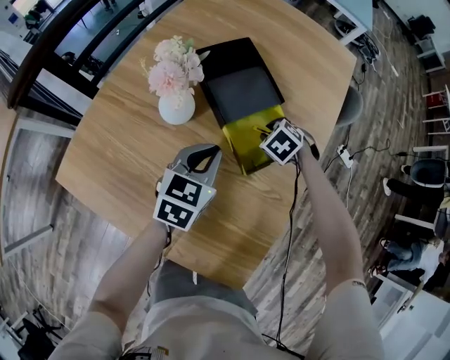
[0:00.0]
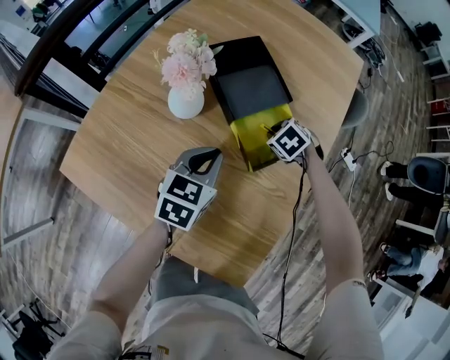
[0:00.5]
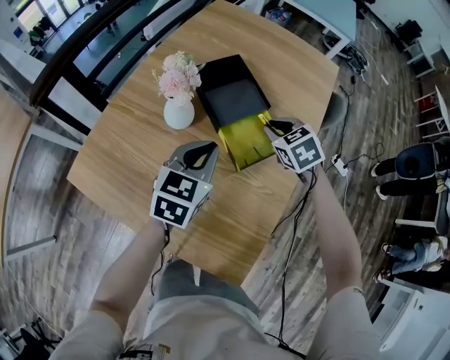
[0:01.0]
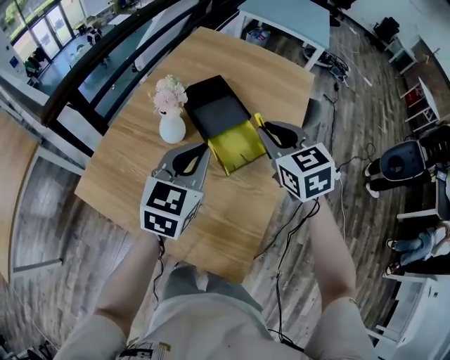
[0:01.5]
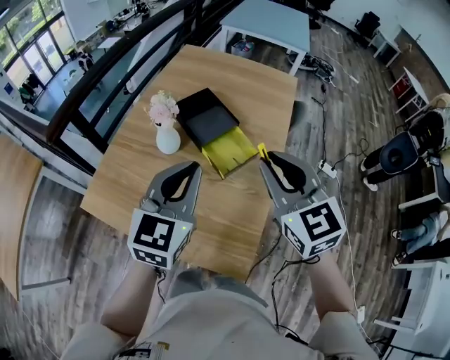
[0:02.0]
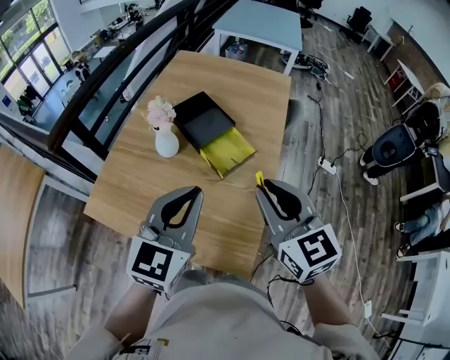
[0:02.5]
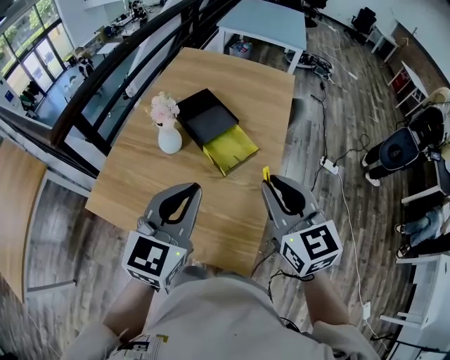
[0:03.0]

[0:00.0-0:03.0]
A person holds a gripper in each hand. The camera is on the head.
0:00.0 to 0:01.5: The left gripper moves upward, some 20 cm; the right gripper is displaced upward by some 35 cm, and tips its fingers upward by some 50 degrees.
0:01.5 to 0:03.0: The two grippers go roughly 20 cm backward and upward.

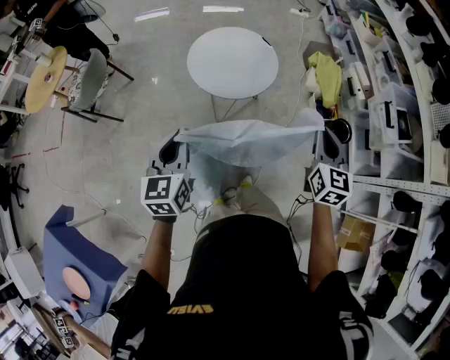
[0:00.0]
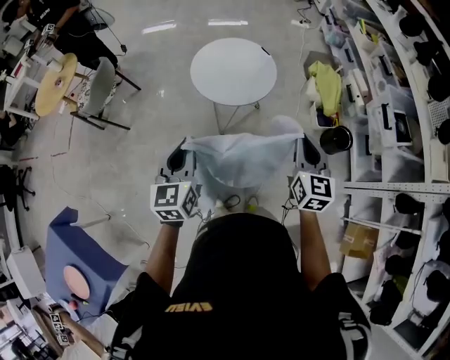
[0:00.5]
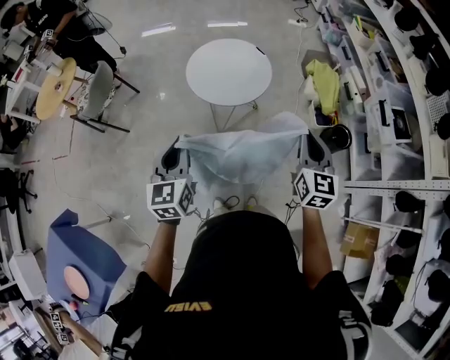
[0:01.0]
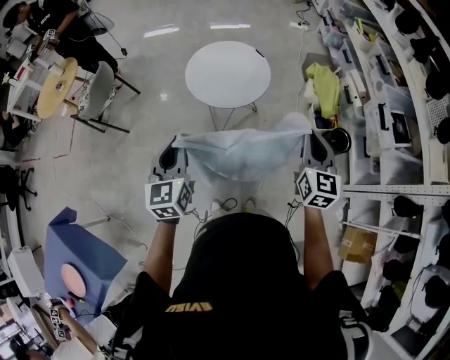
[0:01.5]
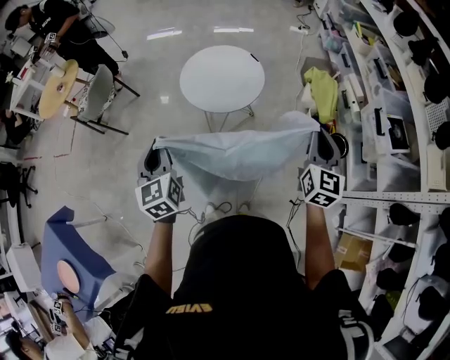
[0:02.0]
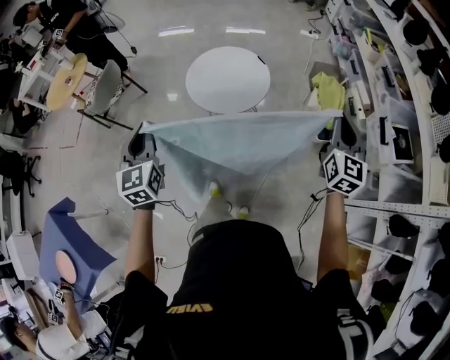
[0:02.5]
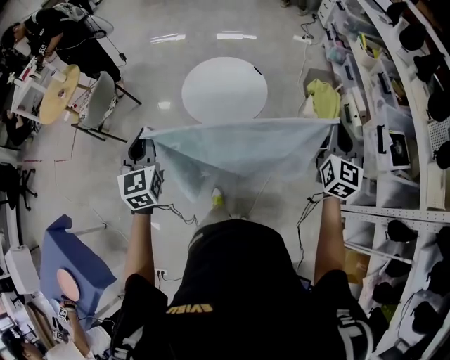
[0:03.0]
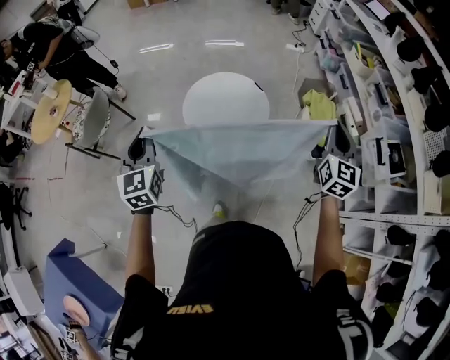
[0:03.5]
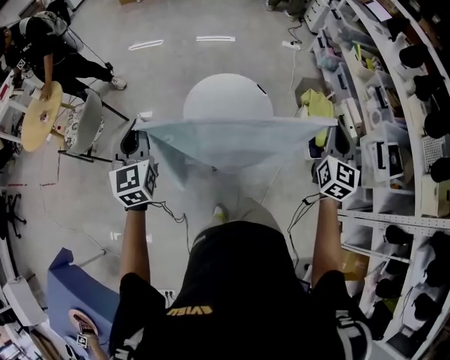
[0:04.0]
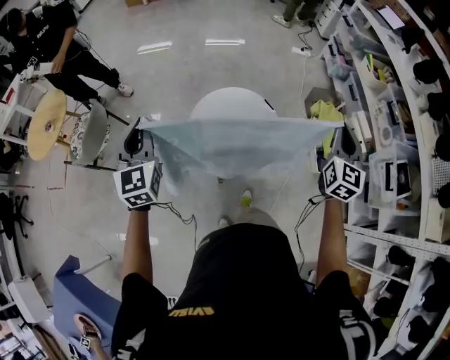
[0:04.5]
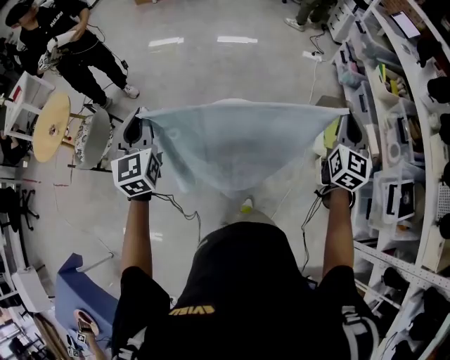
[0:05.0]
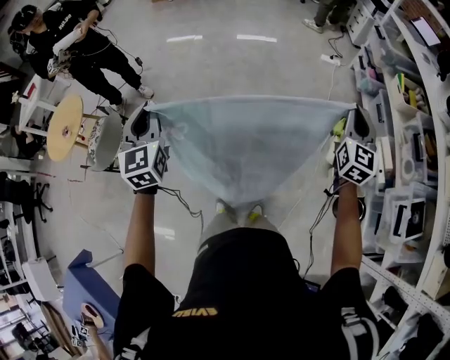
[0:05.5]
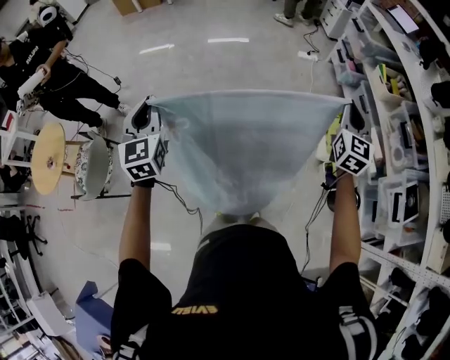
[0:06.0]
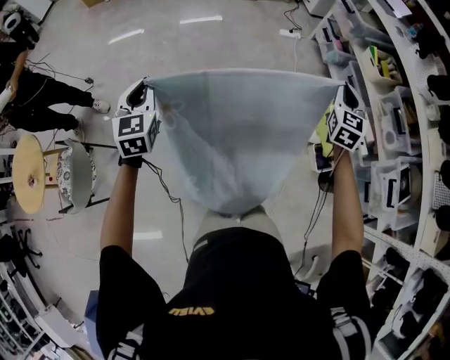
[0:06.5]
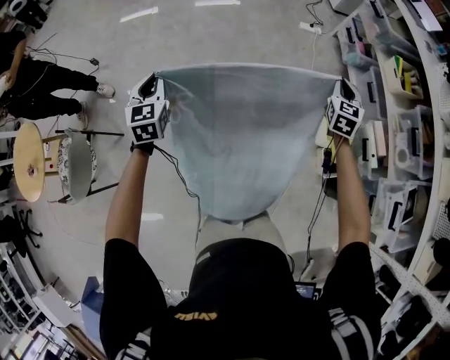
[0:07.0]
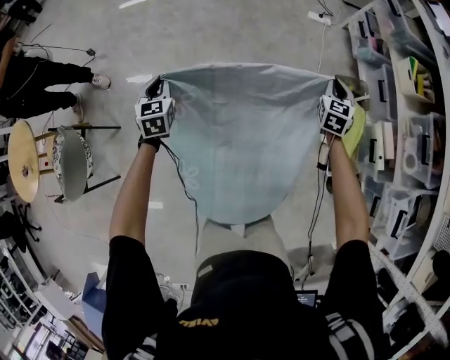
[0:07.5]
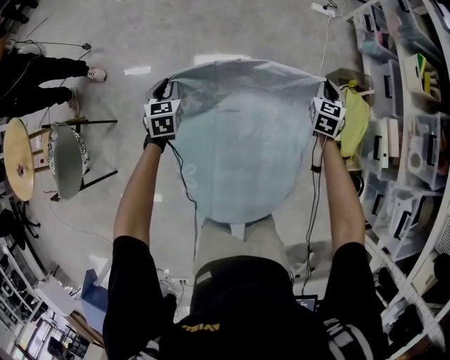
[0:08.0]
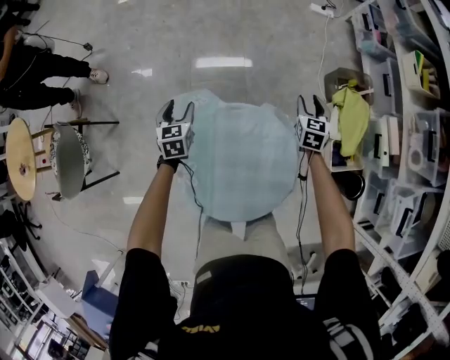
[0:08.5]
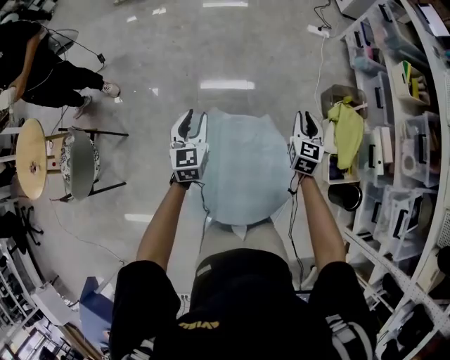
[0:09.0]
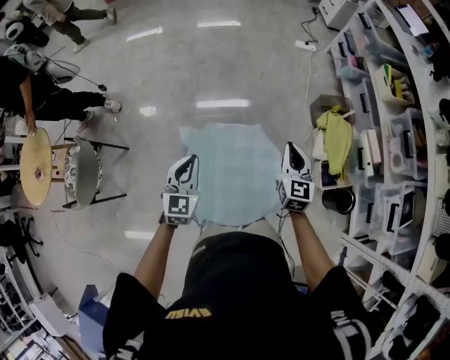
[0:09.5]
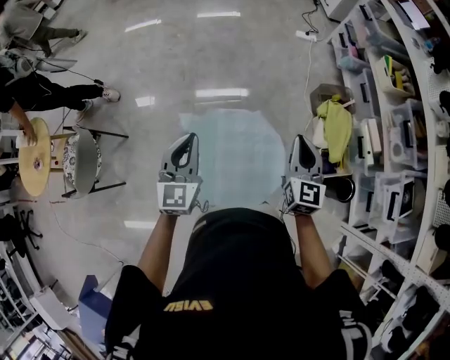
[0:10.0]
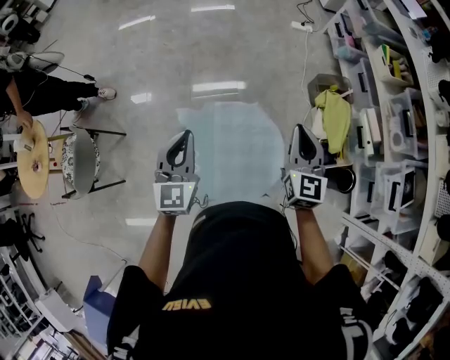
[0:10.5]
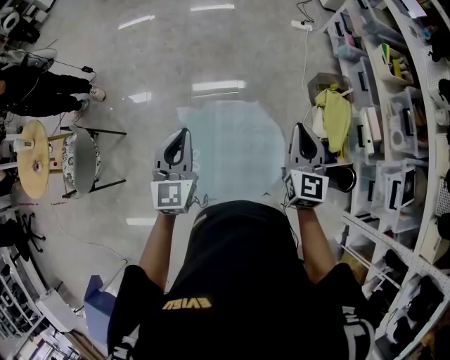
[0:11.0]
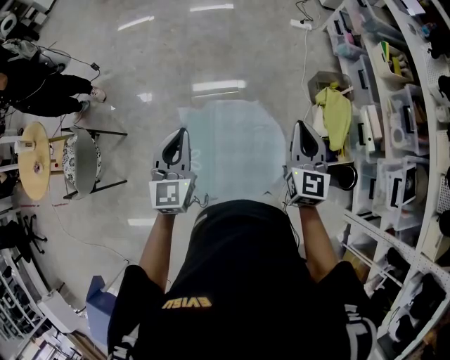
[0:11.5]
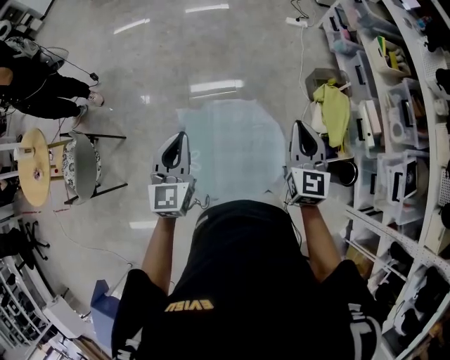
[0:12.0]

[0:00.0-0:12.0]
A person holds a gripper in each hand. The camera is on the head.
0:00.0 to 0:02.0: The right gripper goes roughly 10 cm to the right; the left gripper moves about 5 cm, and swivels some 20 degrees.
0:02.0 to 0:04.0: The right gripper heads forward, covering roughly 20 cm, while the left gripper moves forward and to the left, about 30 cm.
0:04.0 to 0:06.0: The pair of grippers is taken forward, some 40 cm.
0:06.0 to 0:08.0: Both grippers travel together downward and forward, approximately 40 cm. The right gripper rotates some 30 degrees. The left gripper turns by approximately 30 degrees.
0:08.0 to 0:10.0: The right gripper goes some 40 cm backward and upward, turns by about 30 degrees, and opens, then closes again, while the left gripper goes approximately 40 cm upward, backward and to the right, turns by about 30 degrees, and opens and closes again.
0:10.0 to 0:12.0: There are only small adjustments of the grippers.

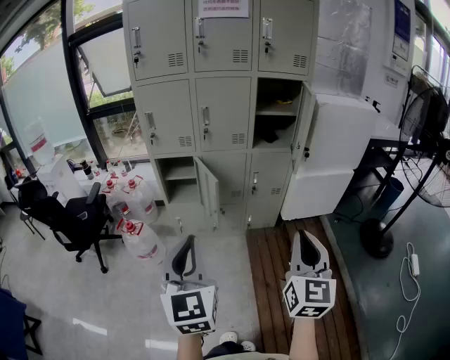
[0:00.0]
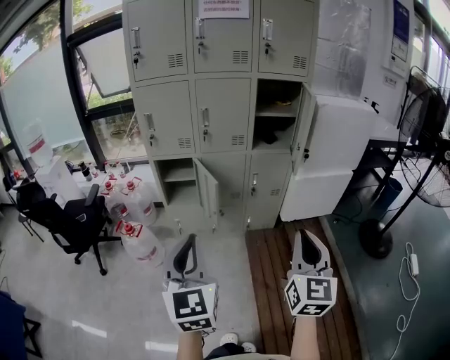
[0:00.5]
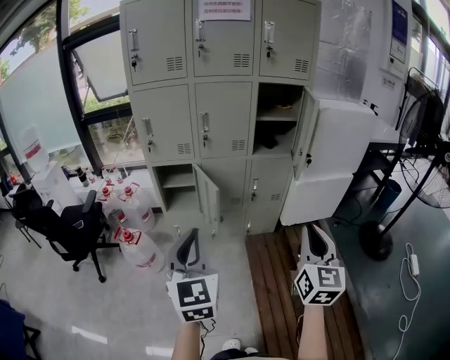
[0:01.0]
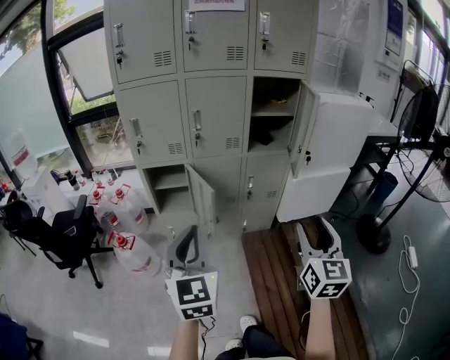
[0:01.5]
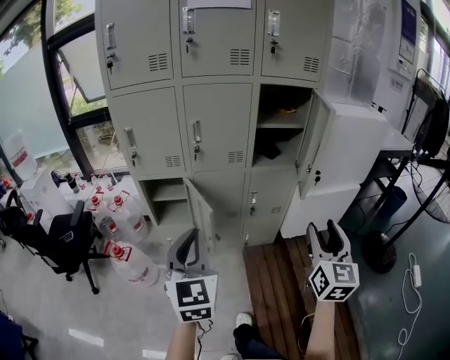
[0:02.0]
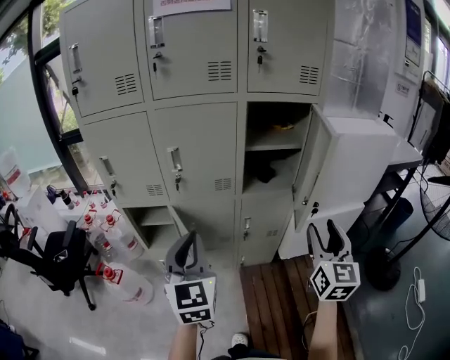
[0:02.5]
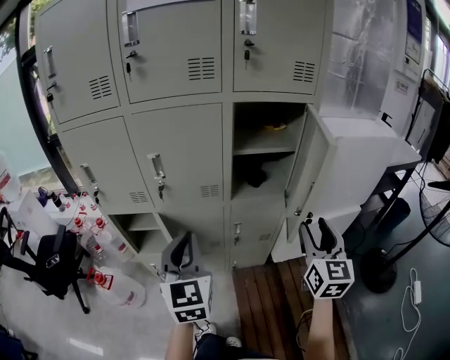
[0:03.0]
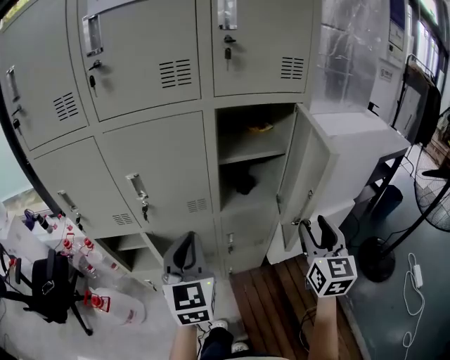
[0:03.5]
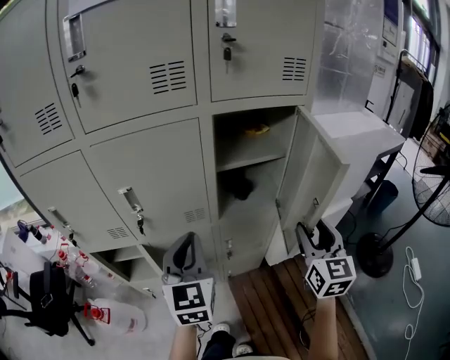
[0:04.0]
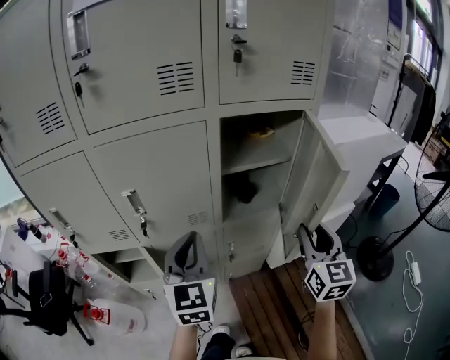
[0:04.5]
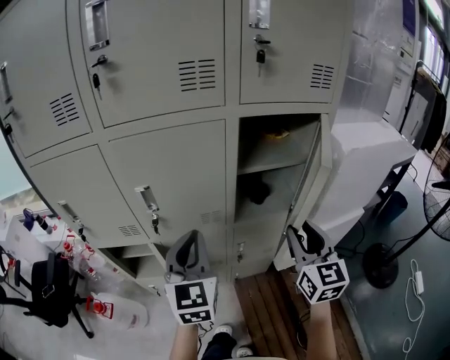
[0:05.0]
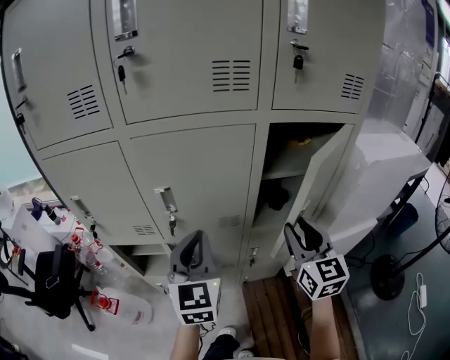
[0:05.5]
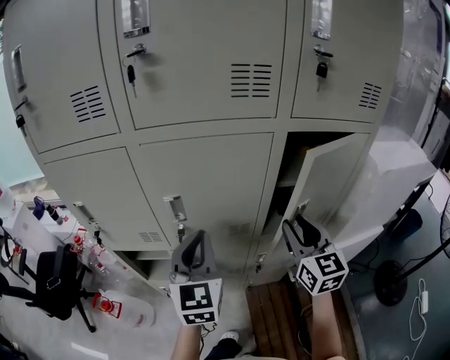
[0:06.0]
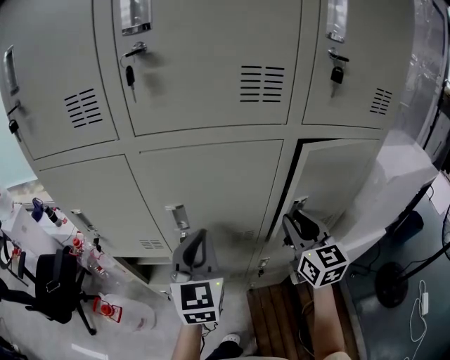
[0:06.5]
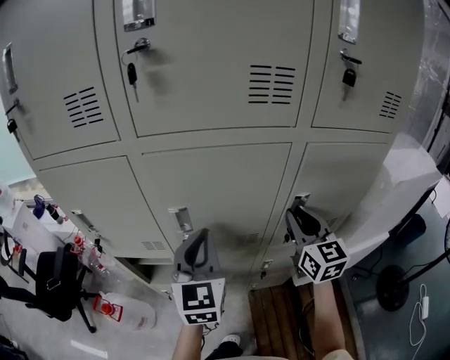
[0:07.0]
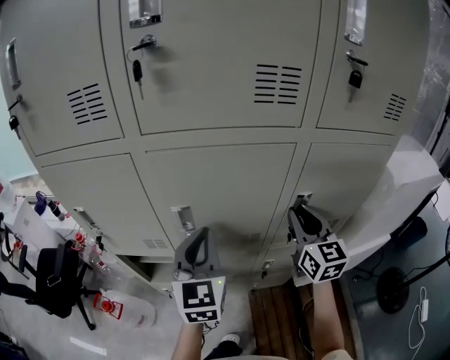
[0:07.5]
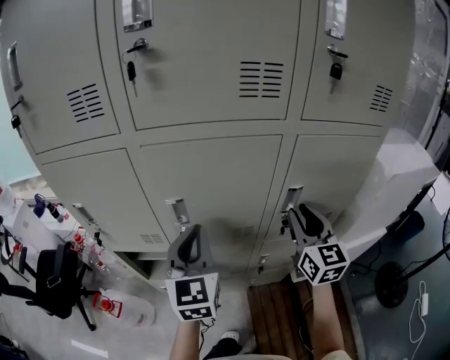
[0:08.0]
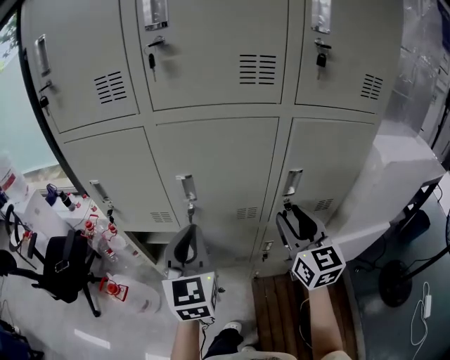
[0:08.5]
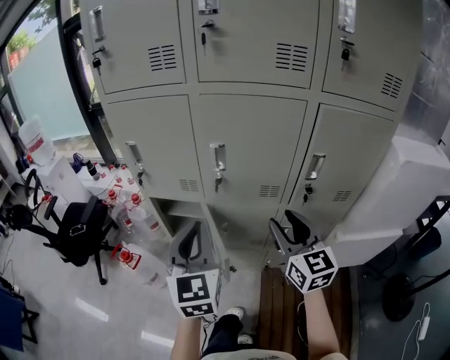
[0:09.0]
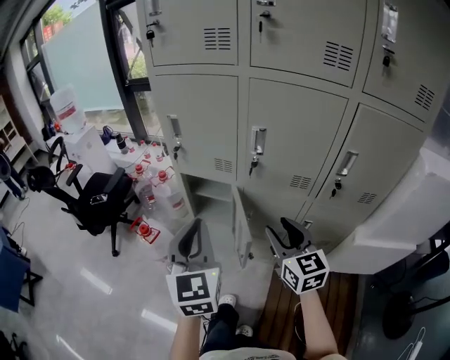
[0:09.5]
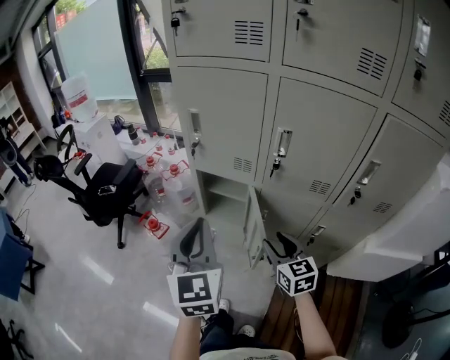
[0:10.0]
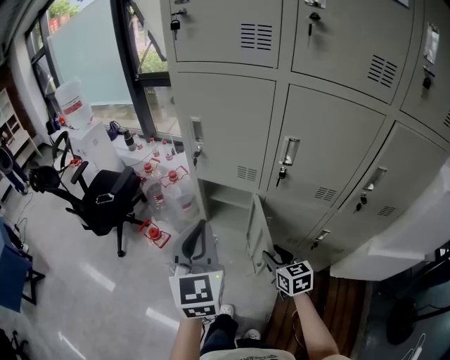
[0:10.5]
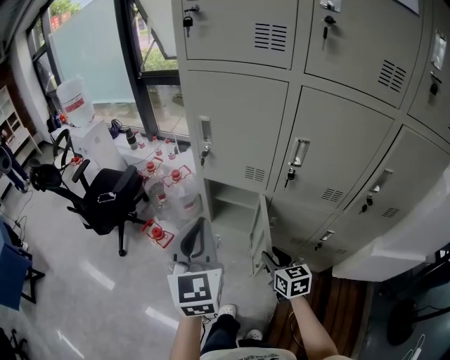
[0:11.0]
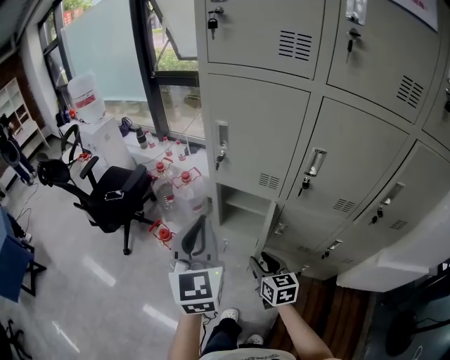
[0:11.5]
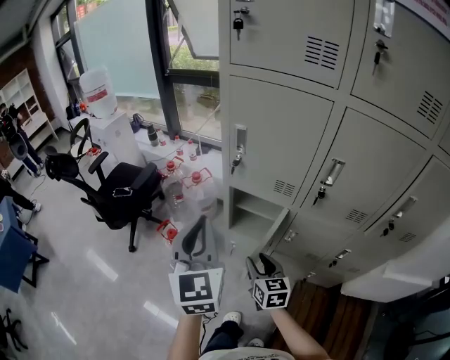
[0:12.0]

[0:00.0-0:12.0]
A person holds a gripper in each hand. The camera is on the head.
0:00.0 to 0:02.0: Both grippers move forward, about 20 cm. The right gripper opens.
0:02.0 to 0:04.0: Both grippers move forward, about 30 cm.
0:04.0 to 0:06.0: The left gripper heads to the left and forward, covering approximately 10 cm. The right gripper moves to the left and forward, about 20 cm, and rotates about 20 degrees.
0:08.0 to 0:10.0: The left gripper ends up roughly 30 cm from where it was, and changes its angle by approximately 30 degrees. The right gripper shifts by approximately 35 cm, and rotates some 40 degrees.
0:10.0 to 0:12.0: The left gripper is displaced to the left and forward by some 15 cm, while the right gripper travels to the left, forward and downward by roughly 20 cm.
